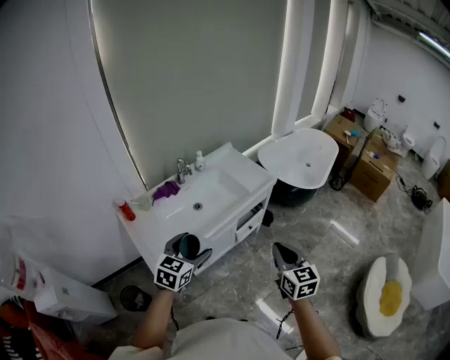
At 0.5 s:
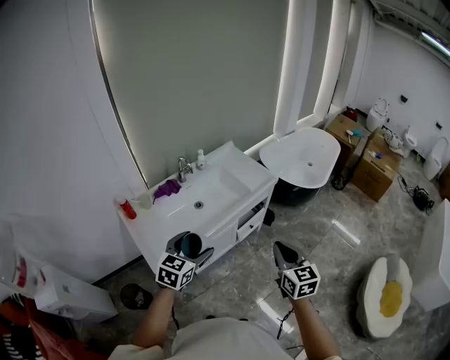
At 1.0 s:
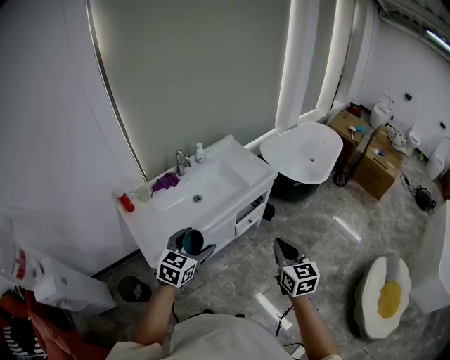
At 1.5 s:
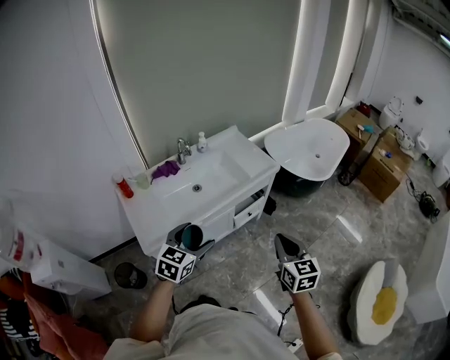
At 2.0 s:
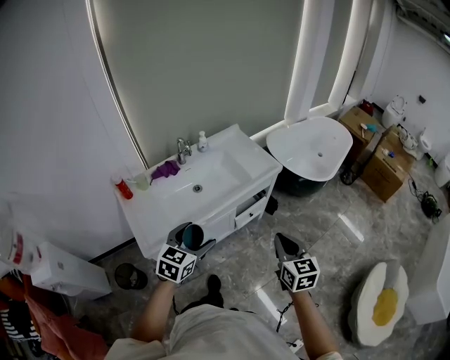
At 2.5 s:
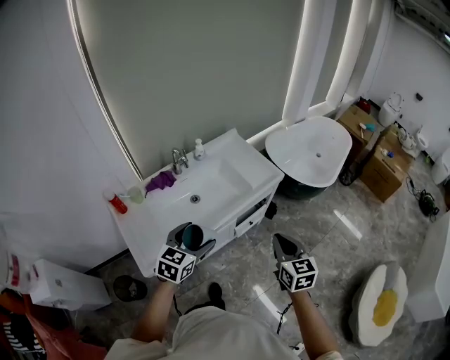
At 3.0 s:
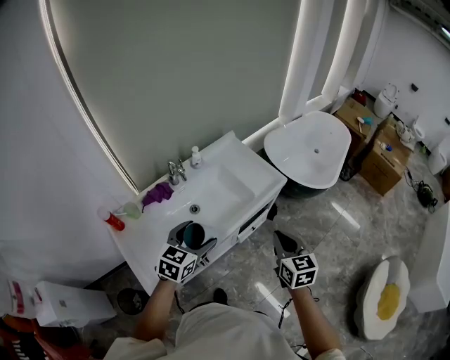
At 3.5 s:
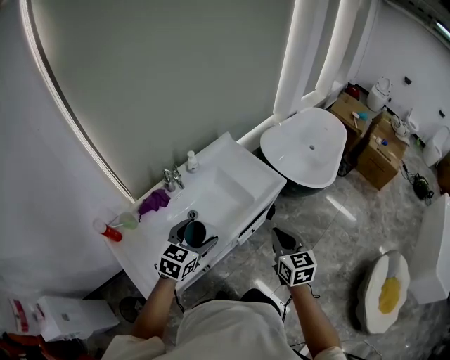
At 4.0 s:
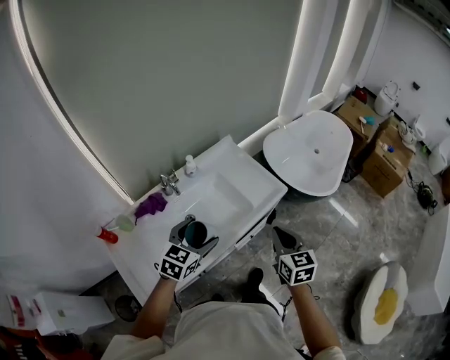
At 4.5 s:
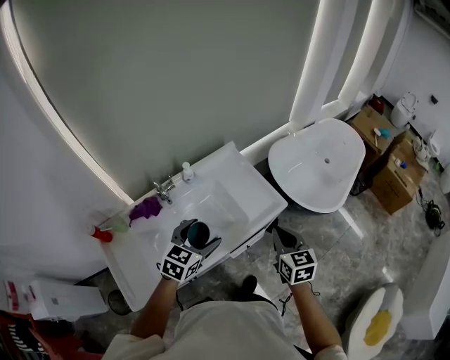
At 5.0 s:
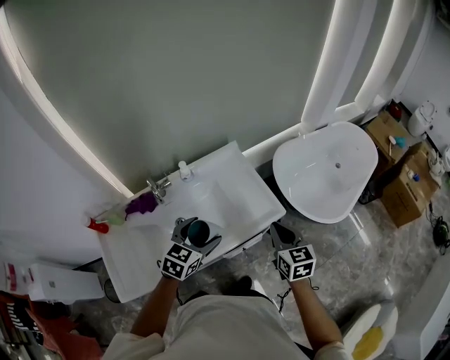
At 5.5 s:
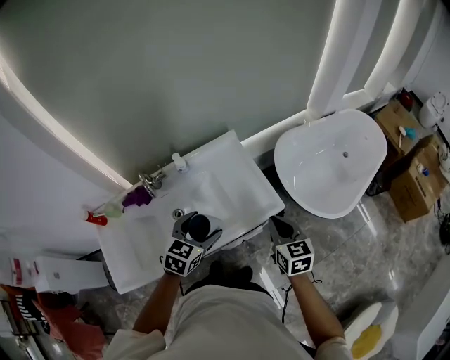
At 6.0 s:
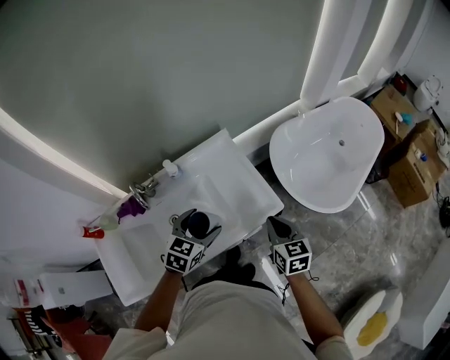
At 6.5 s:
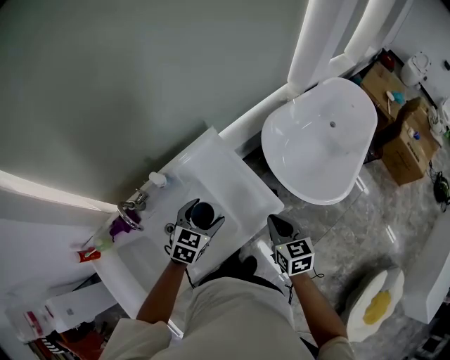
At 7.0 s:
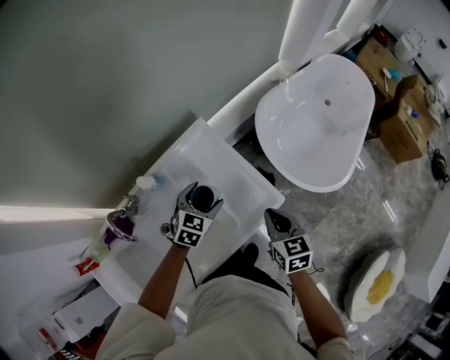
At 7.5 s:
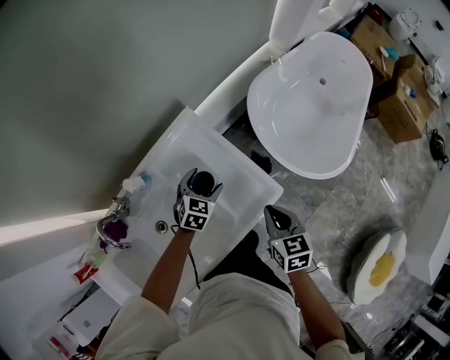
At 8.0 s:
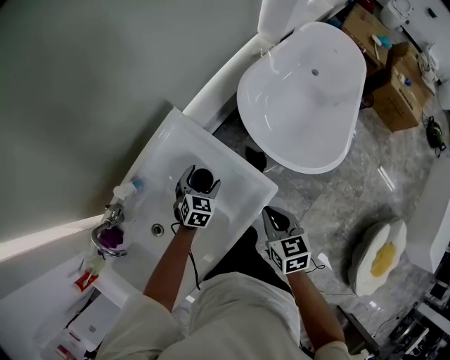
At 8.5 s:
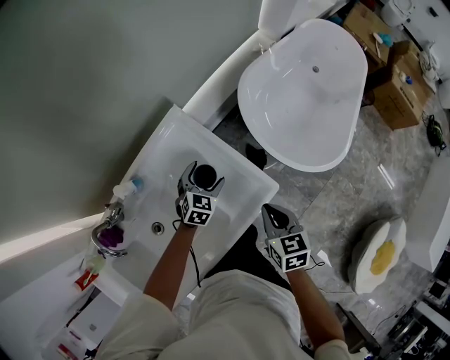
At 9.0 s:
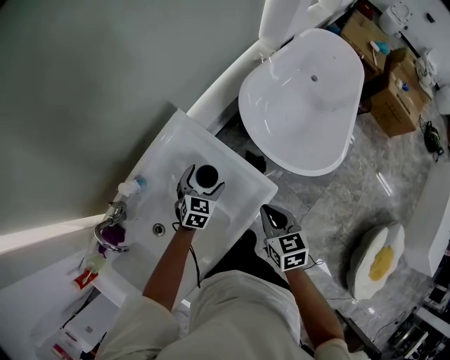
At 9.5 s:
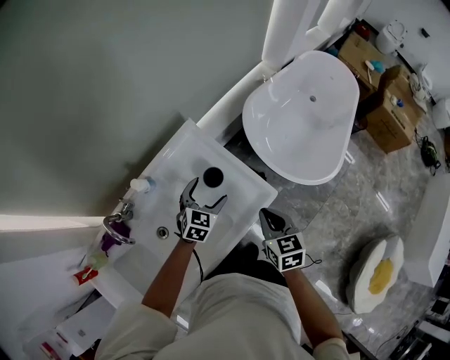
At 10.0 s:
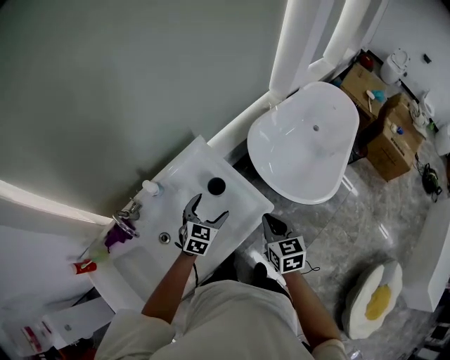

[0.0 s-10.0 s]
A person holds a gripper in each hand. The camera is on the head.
0.0 to 2.0 s: The right gripper shifts by about 10 cm; the left gripper is displaced to the right by about 5 cm.
2.0 to 4.0 s: Both grippers travel together forward, about 30 cm.
4.0 to 6.0 s: The grippers both shift forward and to the right by roughly 25 cm.
6.0 to 8.0 s: The right gripper goes about 10 cm downward and forward, and swivels roughly 20 degrees. Meanwhile the left gripper is displaced downward and forward by approximately 30 cm.
8.0 to 10.0 s: The right gripper shifts roughly 10 cm upward, while the left gripper travels upward and backward by roughly 20 cm.

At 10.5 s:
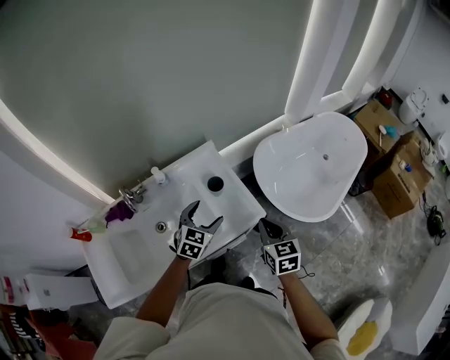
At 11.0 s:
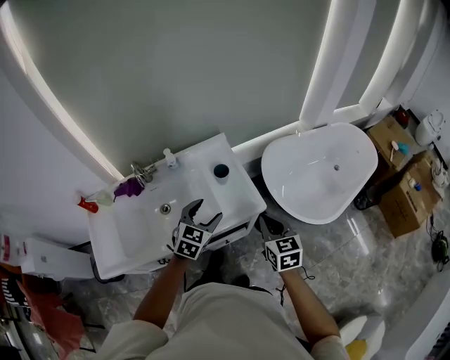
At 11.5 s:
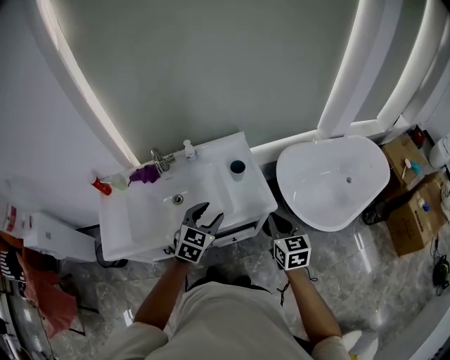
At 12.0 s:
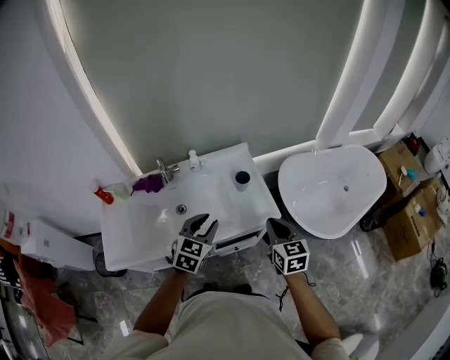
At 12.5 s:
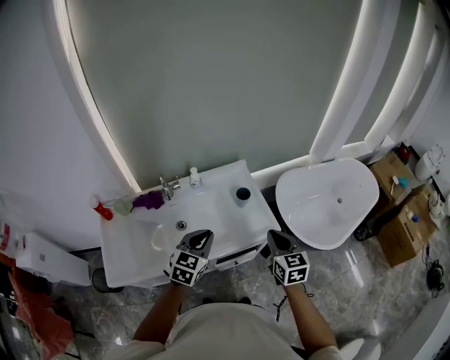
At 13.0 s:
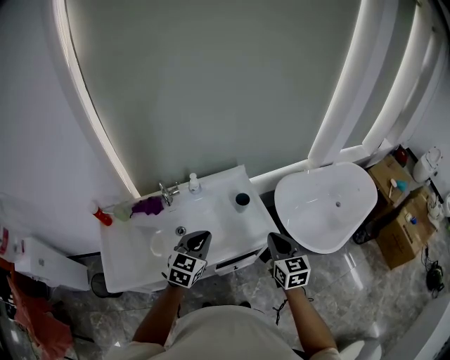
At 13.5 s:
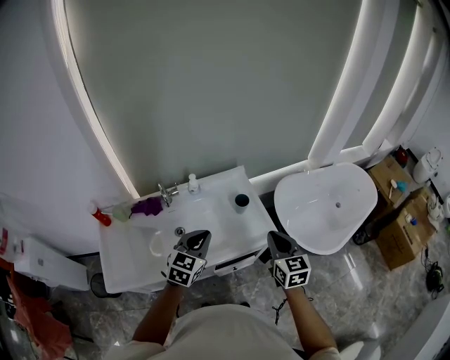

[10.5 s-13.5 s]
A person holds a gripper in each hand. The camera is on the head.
10.5 to 12.0 s: The right gripper goes some 5 cm backward; the left gripper shifts roughly 20 cm backward, upward and to the left, and closes its fingers.
12.0 to 13.5 s: The right gripper shifts by about 5 cm, while the left gripper changes place by approximately 5 cm.

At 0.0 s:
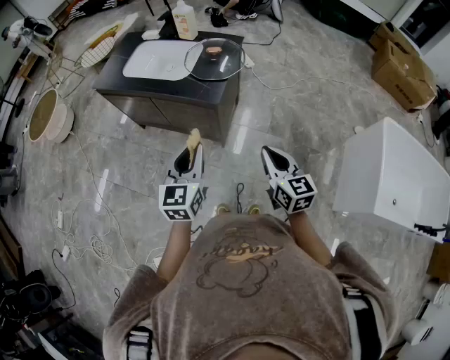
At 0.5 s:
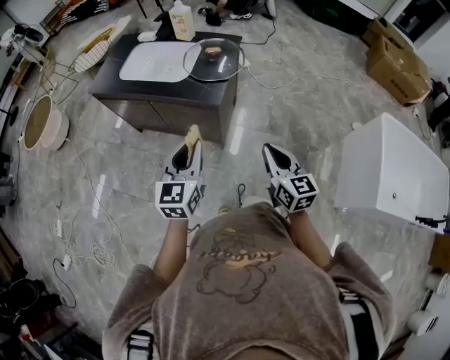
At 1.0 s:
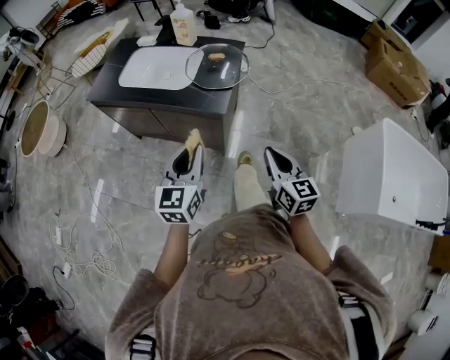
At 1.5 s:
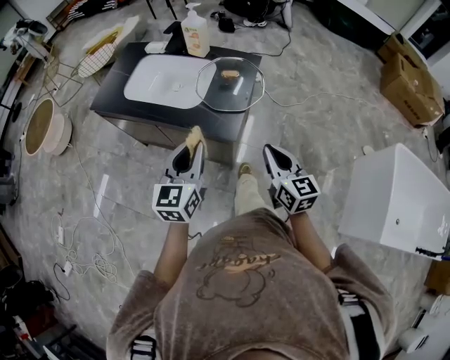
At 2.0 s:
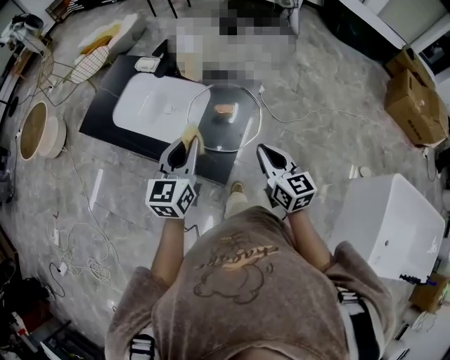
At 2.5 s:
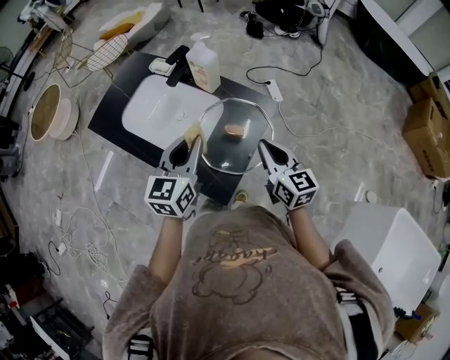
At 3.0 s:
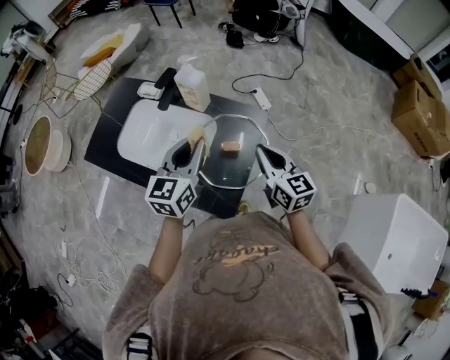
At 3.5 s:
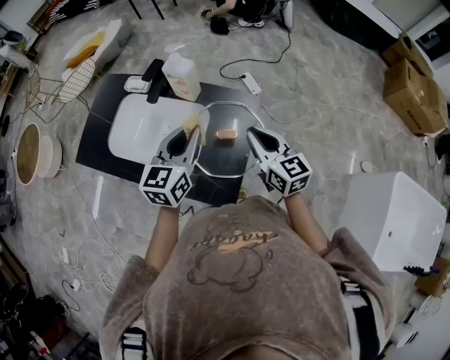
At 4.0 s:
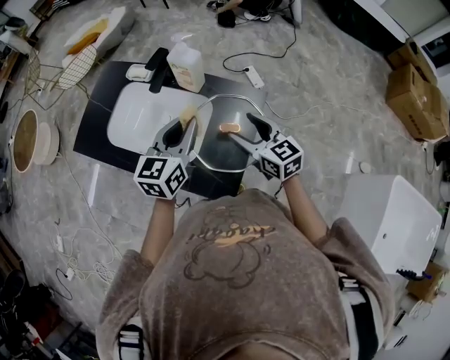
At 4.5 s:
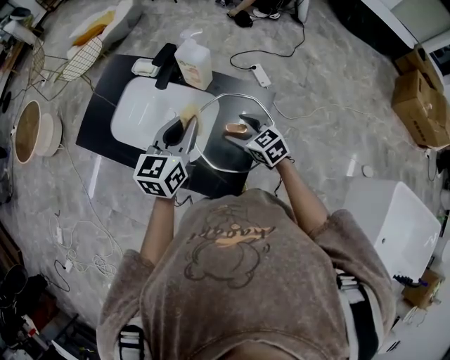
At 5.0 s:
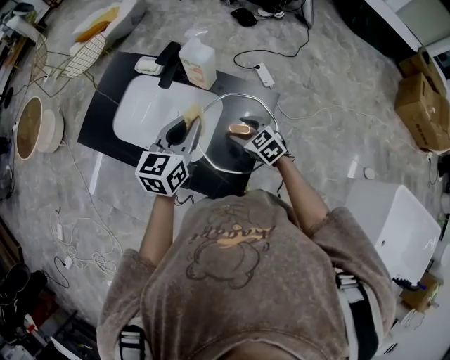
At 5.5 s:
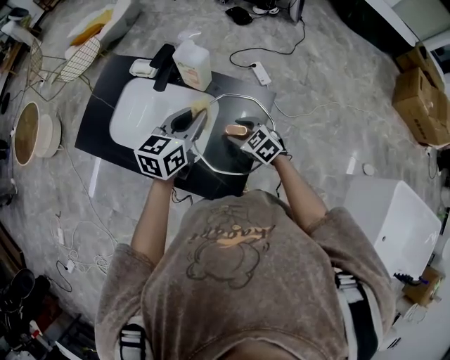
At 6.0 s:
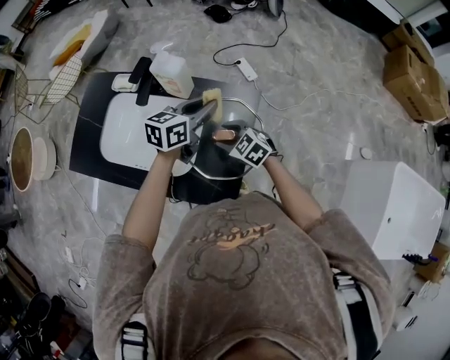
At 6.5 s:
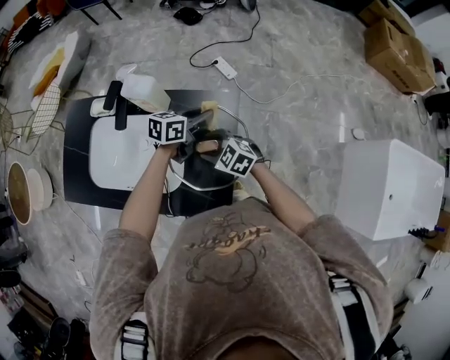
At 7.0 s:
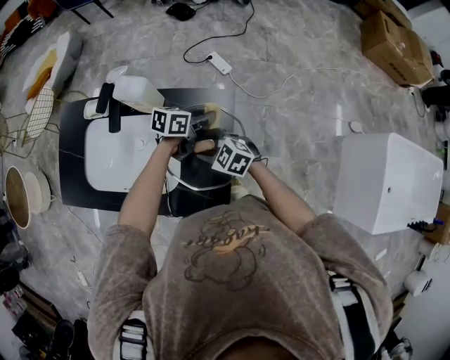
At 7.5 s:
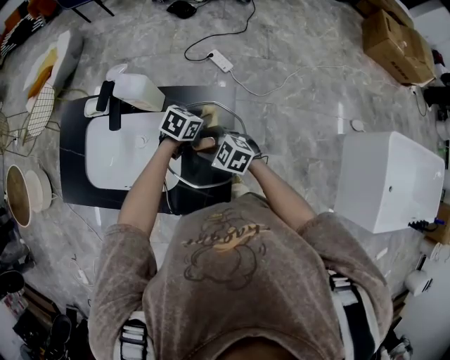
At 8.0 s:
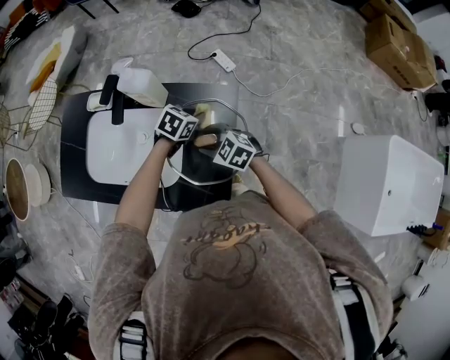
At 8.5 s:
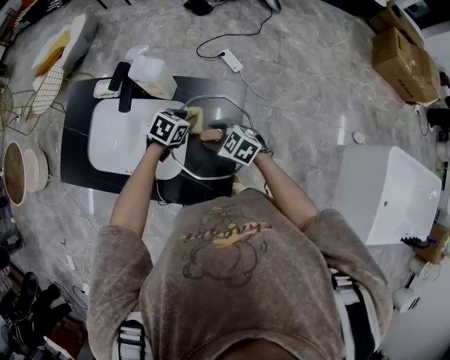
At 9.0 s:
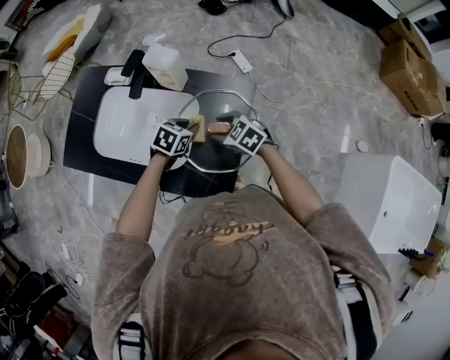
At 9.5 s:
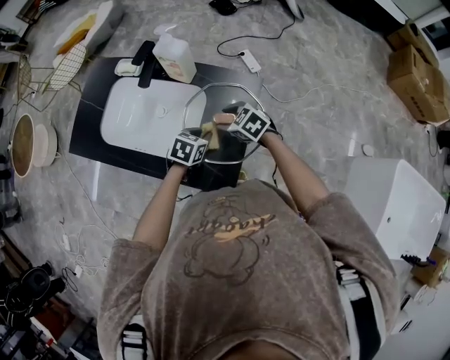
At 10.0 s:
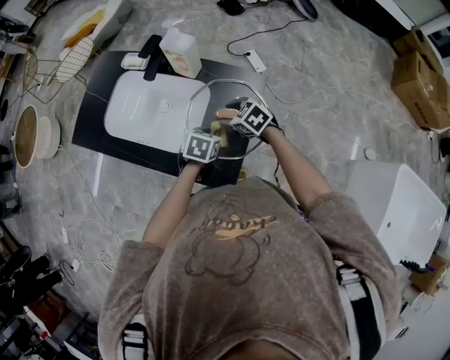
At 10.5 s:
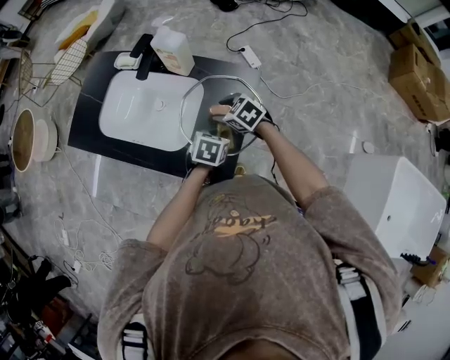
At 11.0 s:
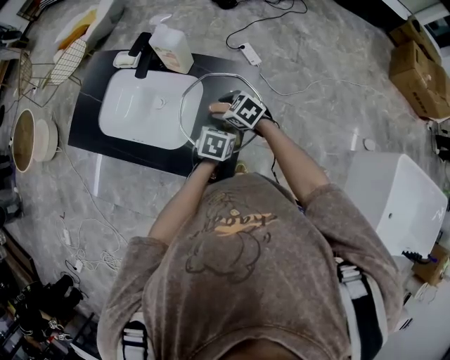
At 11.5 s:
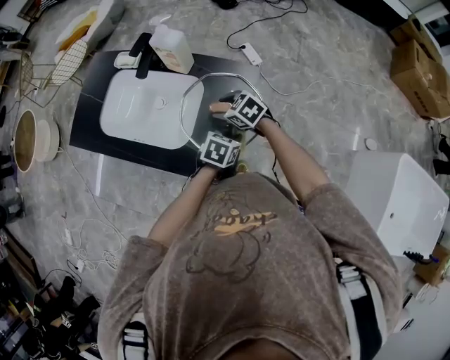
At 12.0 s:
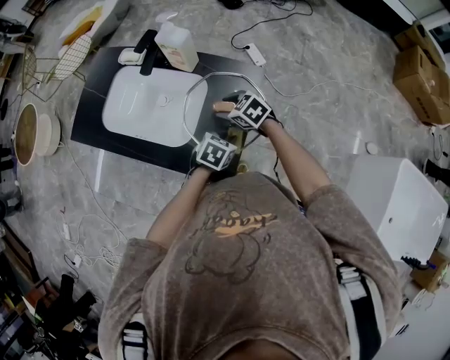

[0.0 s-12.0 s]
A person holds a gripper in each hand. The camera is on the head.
0.0 to 2.0 s: The grippers both shift forward by some 40 cm.
2.0 to 4.0 s: The grippers both shift forward by roughly 15 cm. The right gripper opens up.
4.0 to 6.0 s: The right gripper travels downward by about 15 cm, and changes its angle by approximately 30 degrees. Meanwhile the left gripper shifts some 15 cm to the right, forward and downward, and swivels approximately 30 degrees.
6.0 to 8.0 s: The left gripper moves downward, some 15 cm, and tilts its fingers about 30 degrees downward.
8.0 to 10.0 s: The left gripper ends up approximately 15 cm from where it was, and changes its angle by roughly 30 degrees.
10.0 to 12.0 s: The left gripper travels to the right and backward by roughly 10 cm.

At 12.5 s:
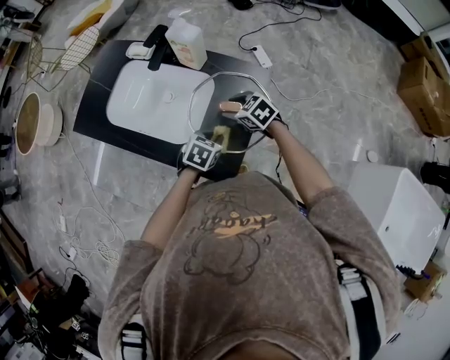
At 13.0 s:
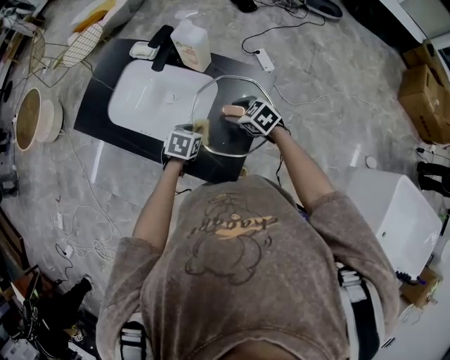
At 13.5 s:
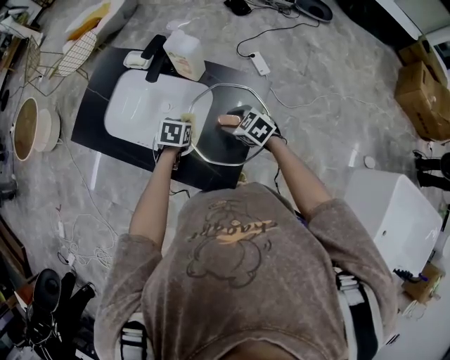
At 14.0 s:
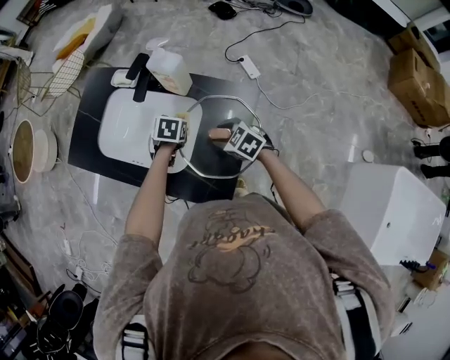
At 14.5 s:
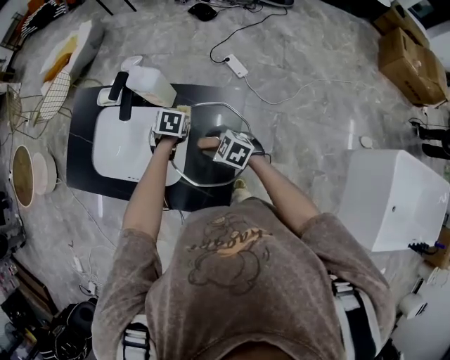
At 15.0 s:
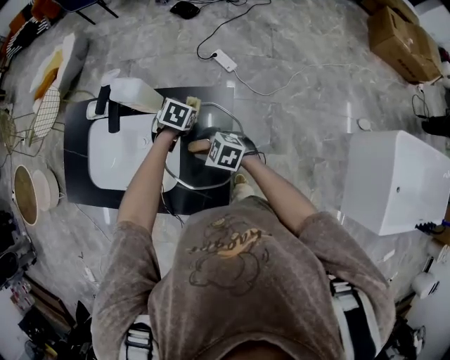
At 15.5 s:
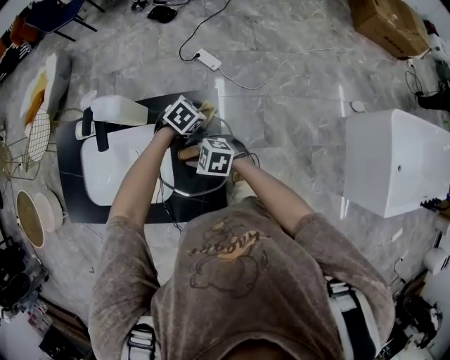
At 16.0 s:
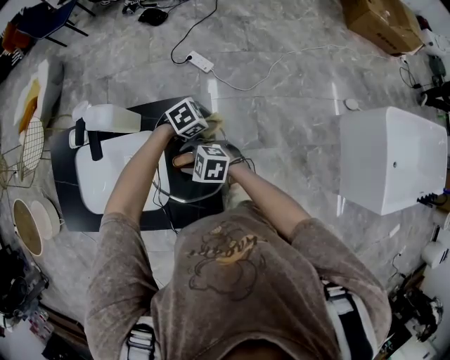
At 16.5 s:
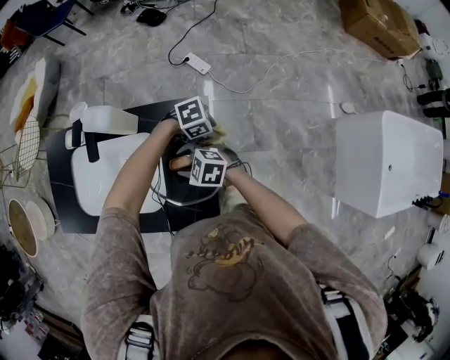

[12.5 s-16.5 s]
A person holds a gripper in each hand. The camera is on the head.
12.5 to 14.5 s: The left gripper travels forward by about 25 cm.
14.5 to 16.5 s: The left gripper ends up about 25 cm from where it was, and changes its angle by roughly 80 degrees.
